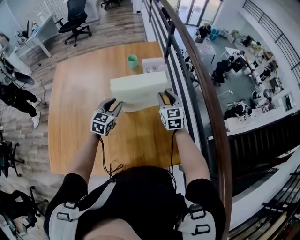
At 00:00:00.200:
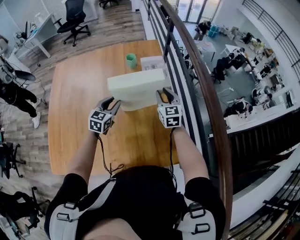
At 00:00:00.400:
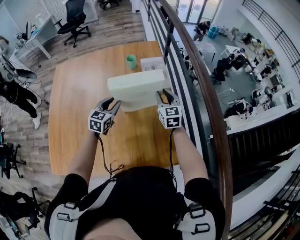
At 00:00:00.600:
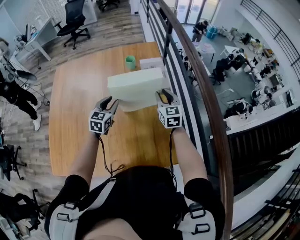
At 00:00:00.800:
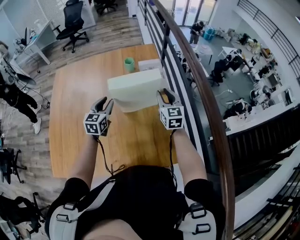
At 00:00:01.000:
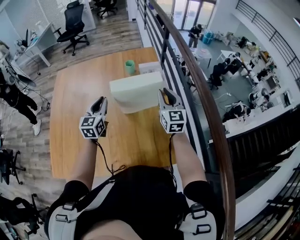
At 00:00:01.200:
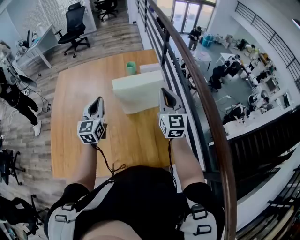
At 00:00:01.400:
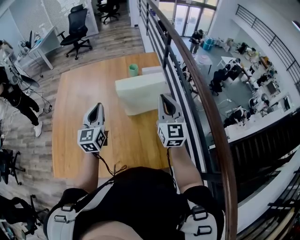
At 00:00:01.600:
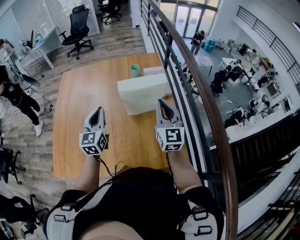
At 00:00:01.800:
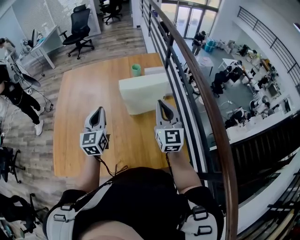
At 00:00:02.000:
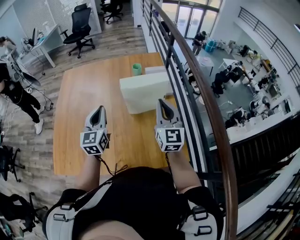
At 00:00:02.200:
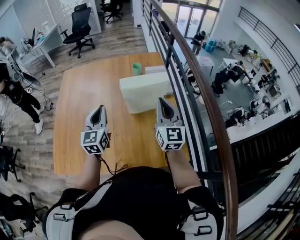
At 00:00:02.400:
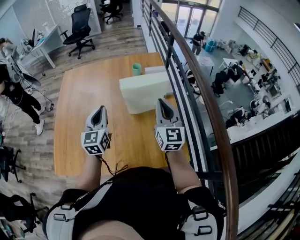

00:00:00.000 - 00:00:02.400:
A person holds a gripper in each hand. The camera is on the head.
00:00:00.000 - 00:00:01.200: The right gripper is displaced upward and backward by about 15 cm, changes its angle by approximately 20 degrees, and closes up. Meanwhile the left gripper is displaced upward and to the left by about 15 cm, swivels approximately 30 degrees, and closes up.
00:00:01.200 - 00:00:02.400: Both grippers travel together backward, some 5 cm.

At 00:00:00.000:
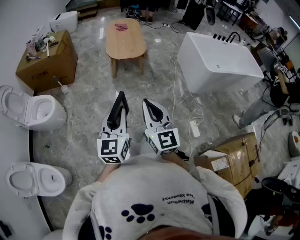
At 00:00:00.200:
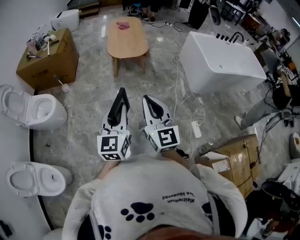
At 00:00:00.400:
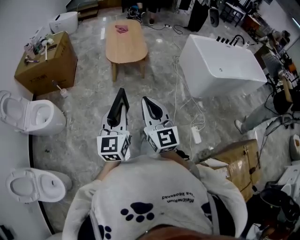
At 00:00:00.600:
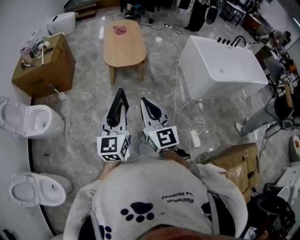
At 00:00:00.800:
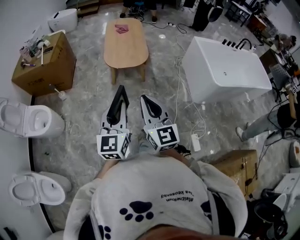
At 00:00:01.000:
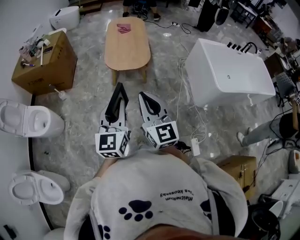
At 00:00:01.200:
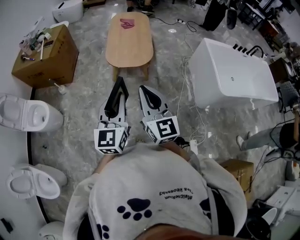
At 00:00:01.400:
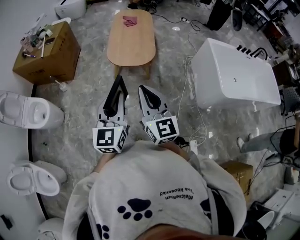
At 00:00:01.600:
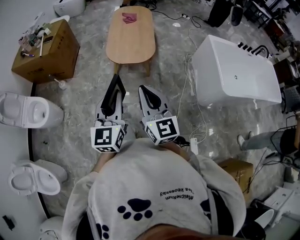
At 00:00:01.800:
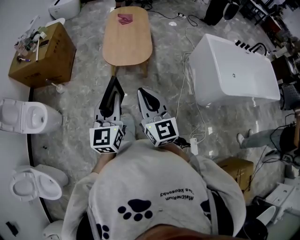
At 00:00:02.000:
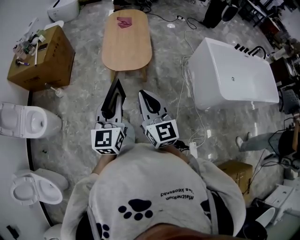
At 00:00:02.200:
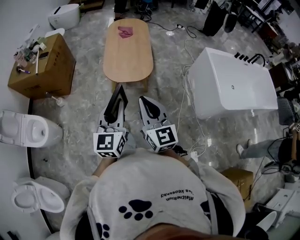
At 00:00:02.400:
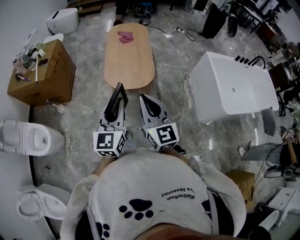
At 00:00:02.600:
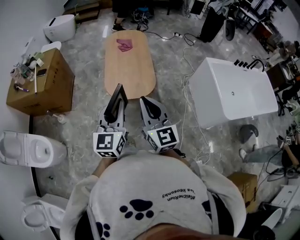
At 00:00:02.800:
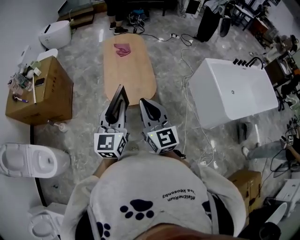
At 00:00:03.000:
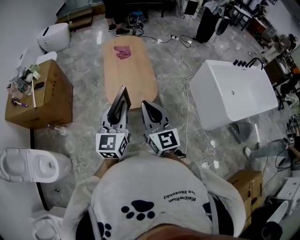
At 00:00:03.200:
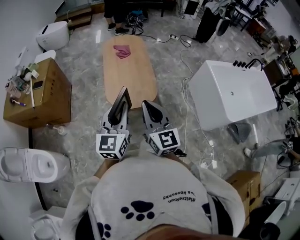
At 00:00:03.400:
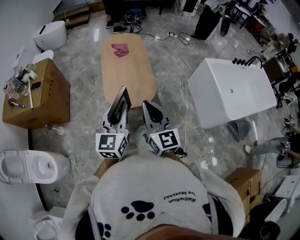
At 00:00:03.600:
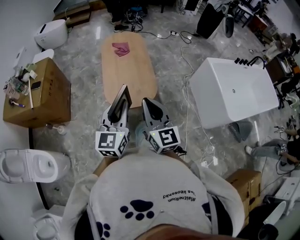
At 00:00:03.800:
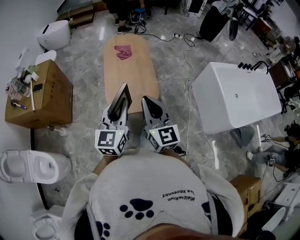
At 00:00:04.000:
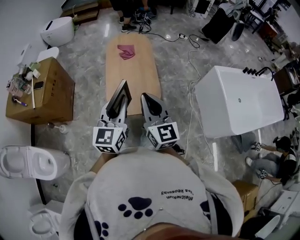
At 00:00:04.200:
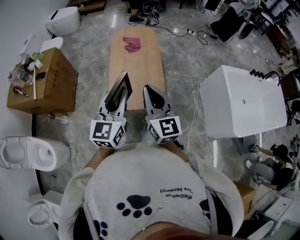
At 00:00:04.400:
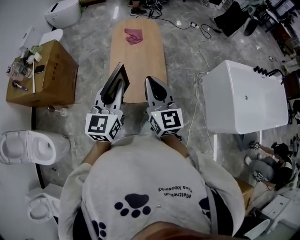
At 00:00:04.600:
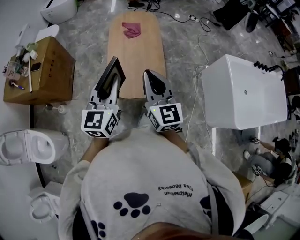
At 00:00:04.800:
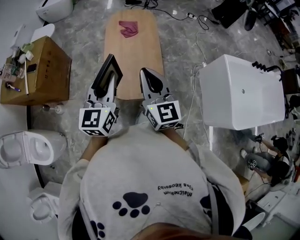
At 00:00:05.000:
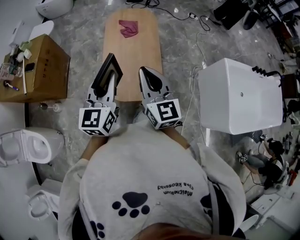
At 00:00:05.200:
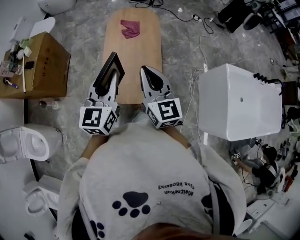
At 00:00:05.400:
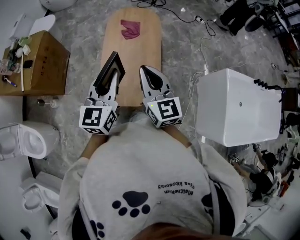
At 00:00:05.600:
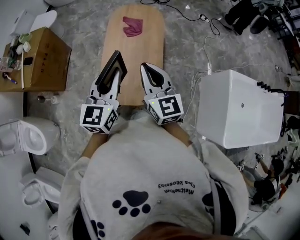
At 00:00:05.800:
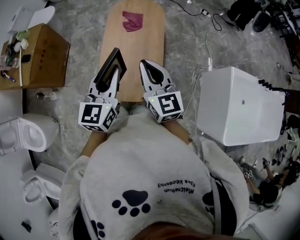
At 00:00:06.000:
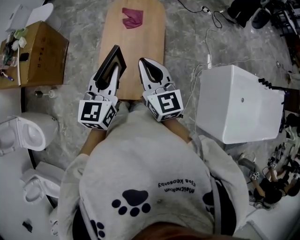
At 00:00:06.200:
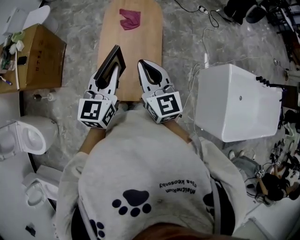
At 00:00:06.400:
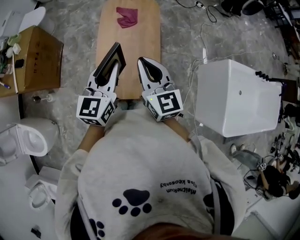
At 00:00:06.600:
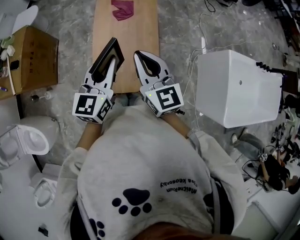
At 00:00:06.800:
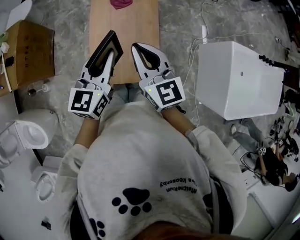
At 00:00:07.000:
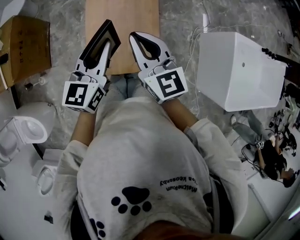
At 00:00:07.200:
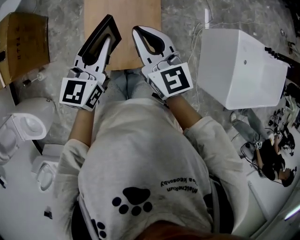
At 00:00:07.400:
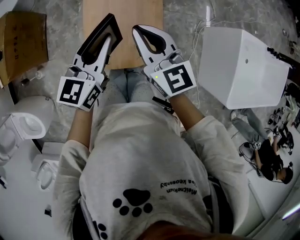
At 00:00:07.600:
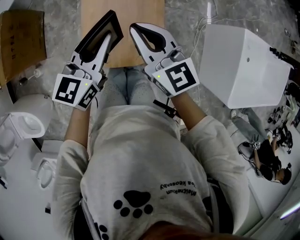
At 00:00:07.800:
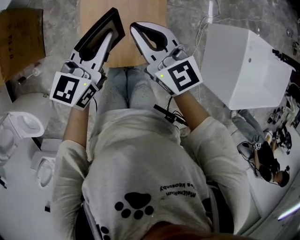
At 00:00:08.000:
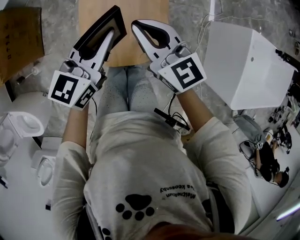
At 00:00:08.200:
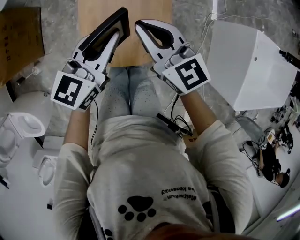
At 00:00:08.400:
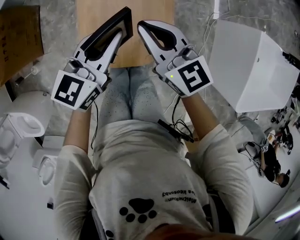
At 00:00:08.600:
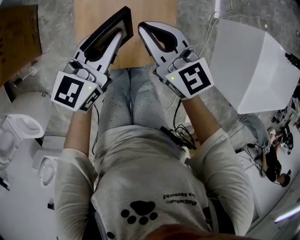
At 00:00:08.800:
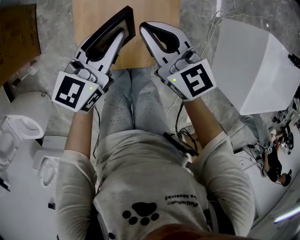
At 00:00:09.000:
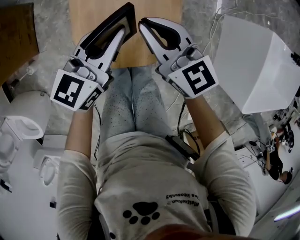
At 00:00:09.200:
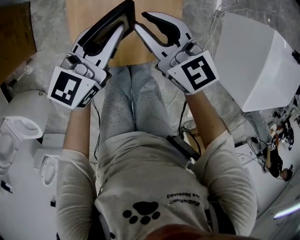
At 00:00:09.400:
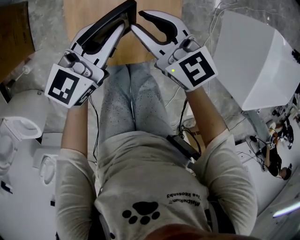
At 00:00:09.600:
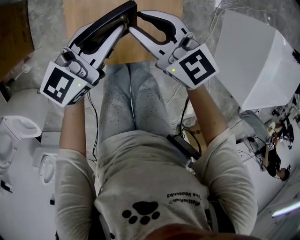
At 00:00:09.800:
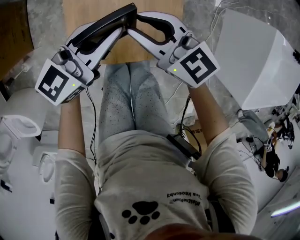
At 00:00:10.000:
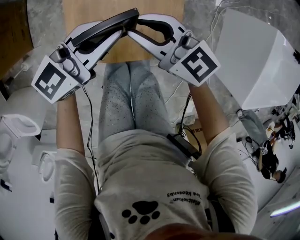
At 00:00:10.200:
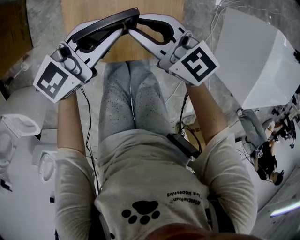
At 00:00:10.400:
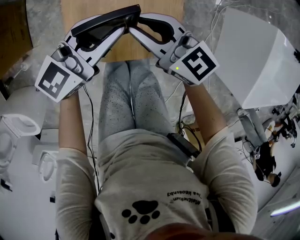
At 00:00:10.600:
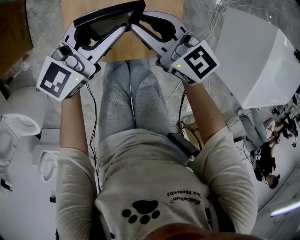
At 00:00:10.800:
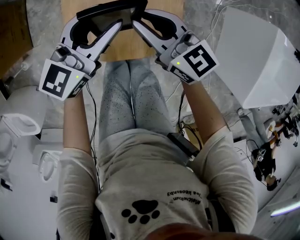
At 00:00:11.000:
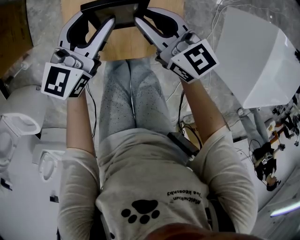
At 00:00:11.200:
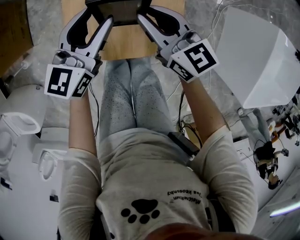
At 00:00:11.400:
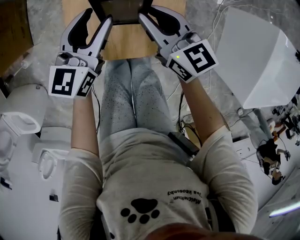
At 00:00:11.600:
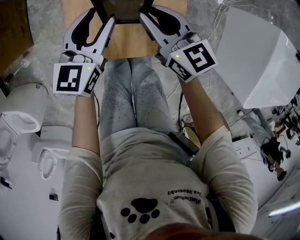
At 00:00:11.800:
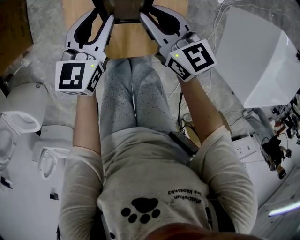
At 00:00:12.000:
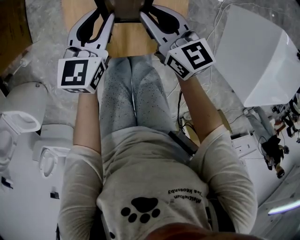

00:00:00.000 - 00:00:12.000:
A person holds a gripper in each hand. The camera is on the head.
00:00:00.000 - 00:00:01.600: The two grippers go some 35 cm forward.
00:00:01.600 - 00:00:03.000: Both grippers travel together forward, some 25 cm.
00:00:03.000 - 00:00:04.400: Both grippers move forward, roughly 15 cm.
00:00:04.400 - 00:00:06.000: Both grippers travel together forward, roughly 20 cm.
00:00:06.000 - 00:00:07.600: The right gripper goes some 5 cm downward, while the left gripper goes roughly 10 cm downward and forward, and rotates some 20 degrees.
00:00:07.600 - 00:00:09.000: The two grippers go about 15 cm downward.
00:00:10.400 - 00:00:12.000: The two grippers go some 5 cm downward. The left gripper turns by about 30 degrees.

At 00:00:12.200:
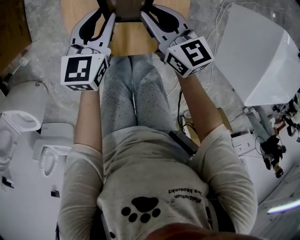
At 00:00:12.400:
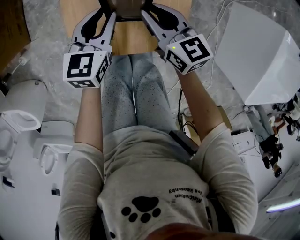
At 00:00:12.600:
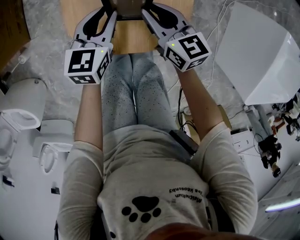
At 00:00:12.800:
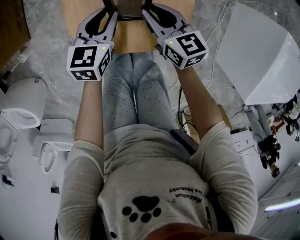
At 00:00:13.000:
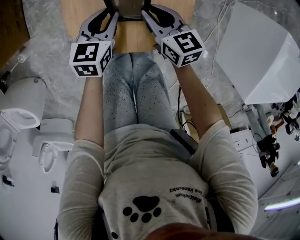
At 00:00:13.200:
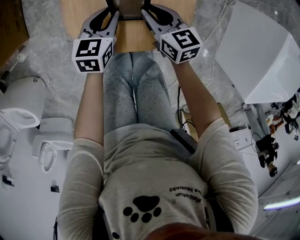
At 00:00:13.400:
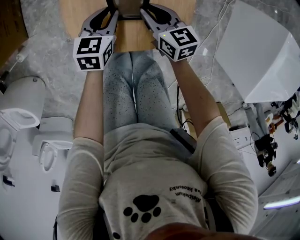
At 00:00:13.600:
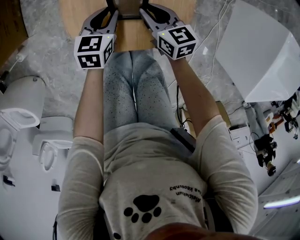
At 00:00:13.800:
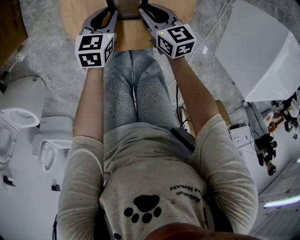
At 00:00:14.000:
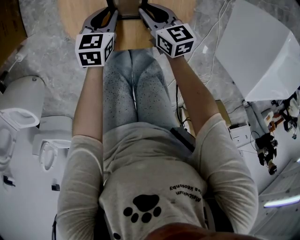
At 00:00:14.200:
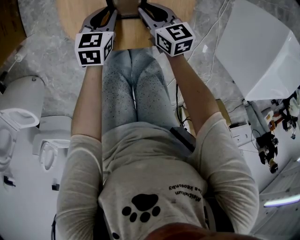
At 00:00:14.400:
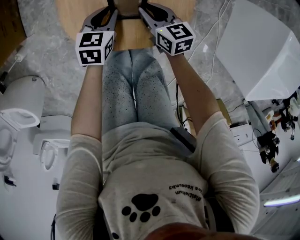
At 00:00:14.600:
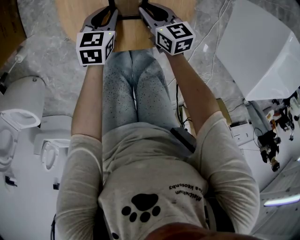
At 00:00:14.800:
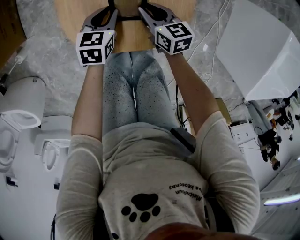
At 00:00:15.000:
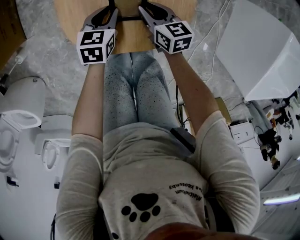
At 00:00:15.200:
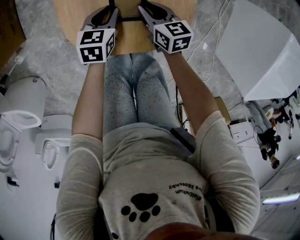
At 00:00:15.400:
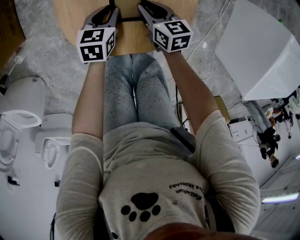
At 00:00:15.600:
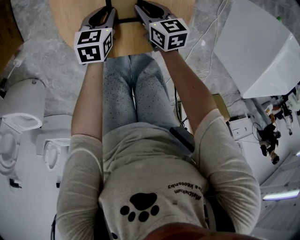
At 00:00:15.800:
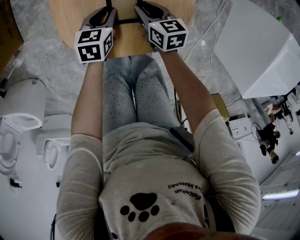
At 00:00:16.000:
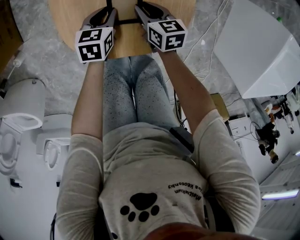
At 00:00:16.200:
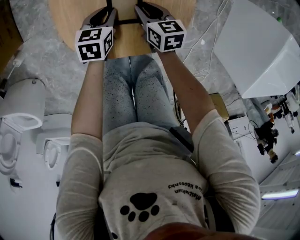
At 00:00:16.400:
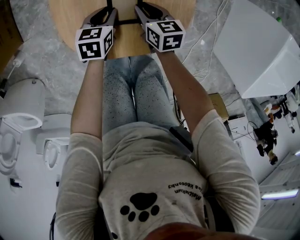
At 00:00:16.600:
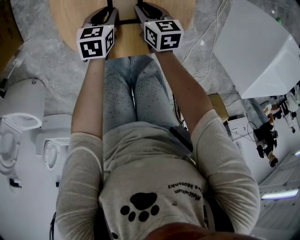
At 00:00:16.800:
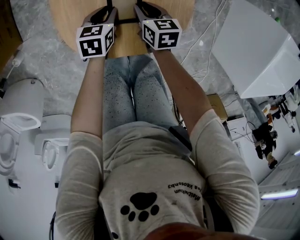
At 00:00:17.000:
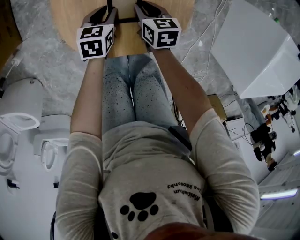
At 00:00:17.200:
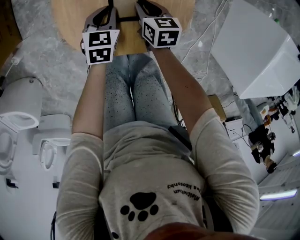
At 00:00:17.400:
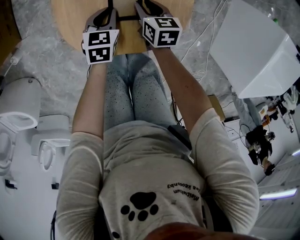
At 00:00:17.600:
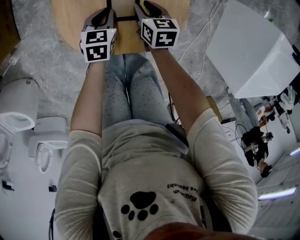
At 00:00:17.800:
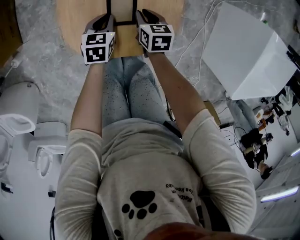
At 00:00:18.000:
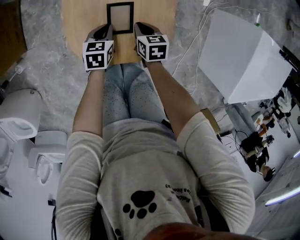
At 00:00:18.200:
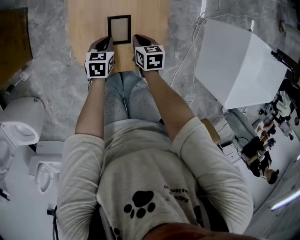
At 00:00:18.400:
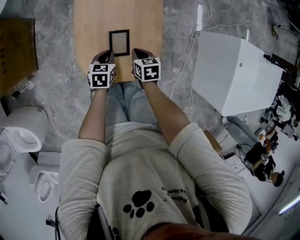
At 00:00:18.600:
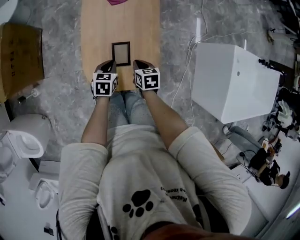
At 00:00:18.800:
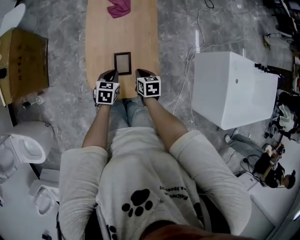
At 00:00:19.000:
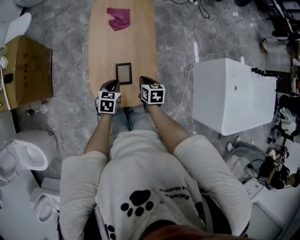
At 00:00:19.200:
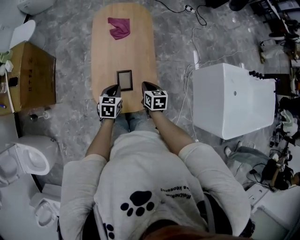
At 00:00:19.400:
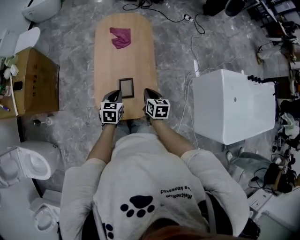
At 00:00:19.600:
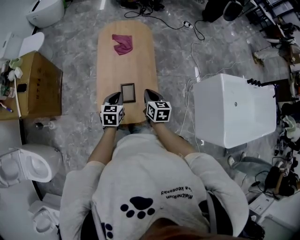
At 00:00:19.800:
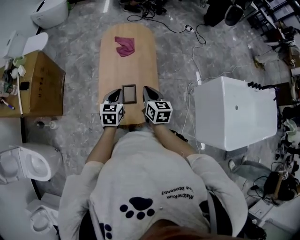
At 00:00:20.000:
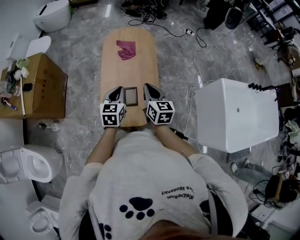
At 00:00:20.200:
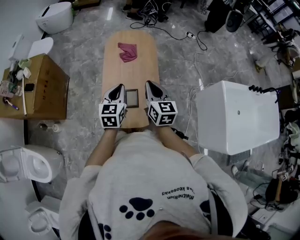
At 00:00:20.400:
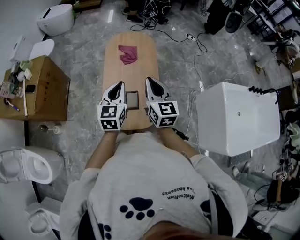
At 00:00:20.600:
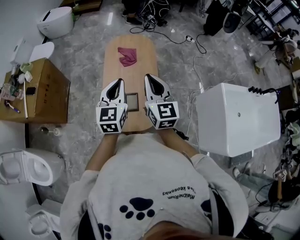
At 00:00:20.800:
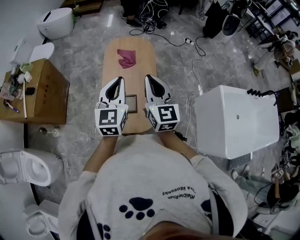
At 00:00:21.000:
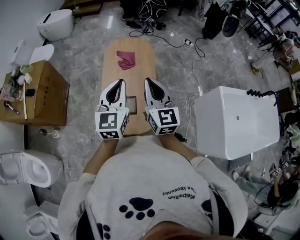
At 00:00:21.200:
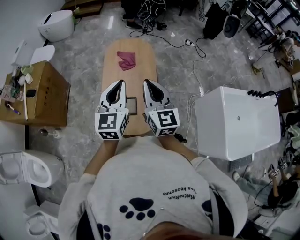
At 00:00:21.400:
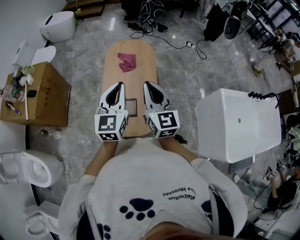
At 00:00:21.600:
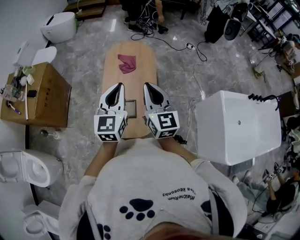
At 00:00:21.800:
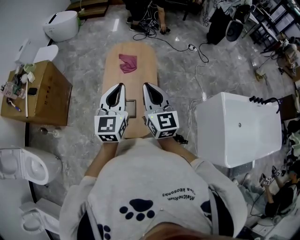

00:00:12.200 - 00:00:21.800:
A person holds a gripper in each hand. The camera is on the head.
00:00:12.200 - 00:00:13.800: The two grippers go about 15 cm downward.
00:00:13.800 - 00:00:15.400: The grippers stay close to where they were, moving slightly.
00:00:15.400 - 00:00:17.000: The grippers make only small movements.
00:00:17.000 - 00:00:18.600: Both grippers travel together upward, approximately 15 cm. The left gripper closes its fingers.
00:00:18.600 - 00:00:20.200: Both grippers move upward, about 30 cm. The right gripper points its fingers approximately 40 degrees further upward. The left gripper turns by approximately 30 degrees.
00:00:20.200 - 00:00:21.800: The grippers both shift upward by some 10 cm.
